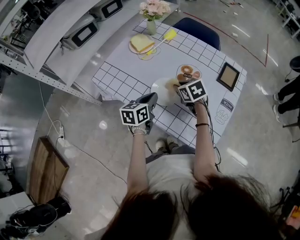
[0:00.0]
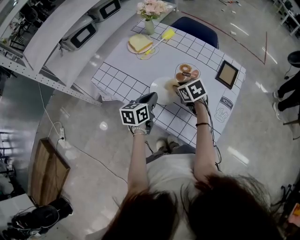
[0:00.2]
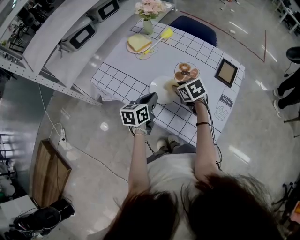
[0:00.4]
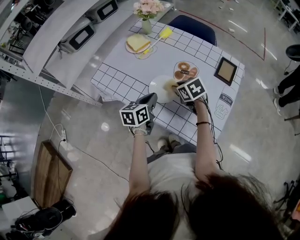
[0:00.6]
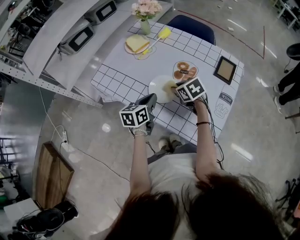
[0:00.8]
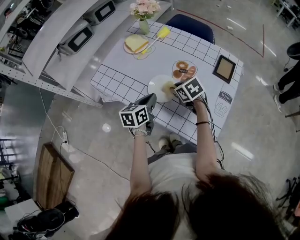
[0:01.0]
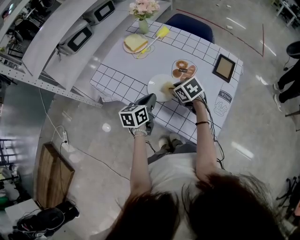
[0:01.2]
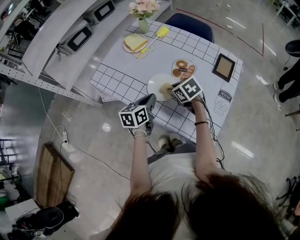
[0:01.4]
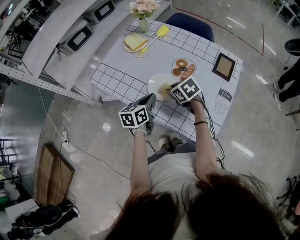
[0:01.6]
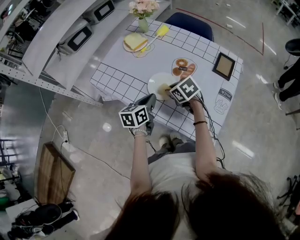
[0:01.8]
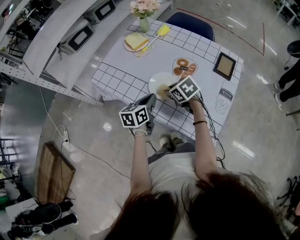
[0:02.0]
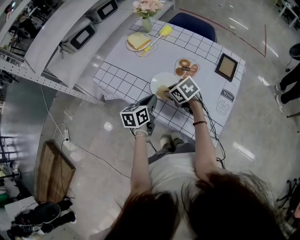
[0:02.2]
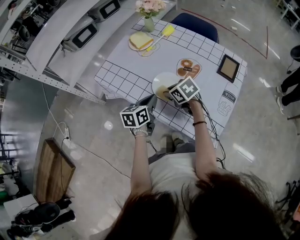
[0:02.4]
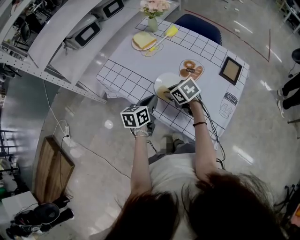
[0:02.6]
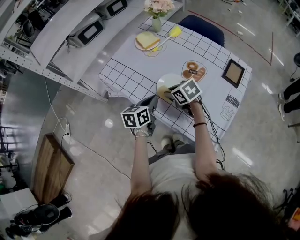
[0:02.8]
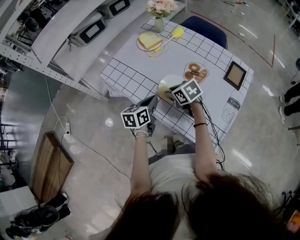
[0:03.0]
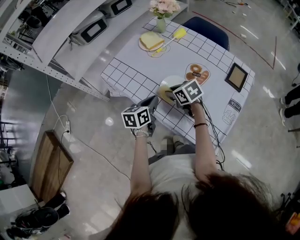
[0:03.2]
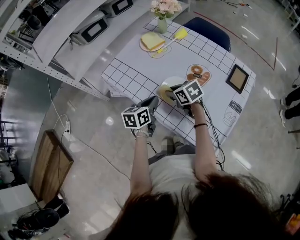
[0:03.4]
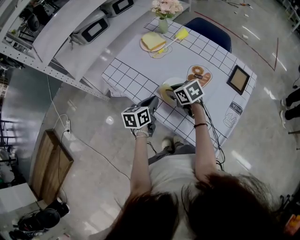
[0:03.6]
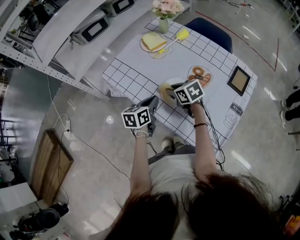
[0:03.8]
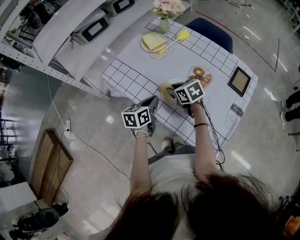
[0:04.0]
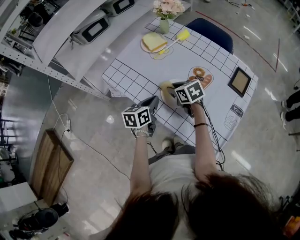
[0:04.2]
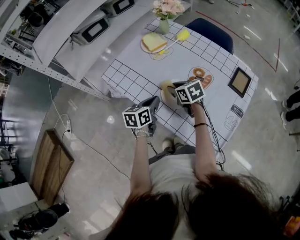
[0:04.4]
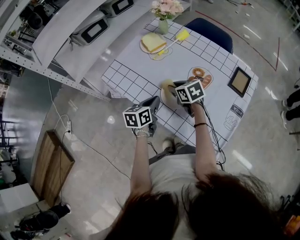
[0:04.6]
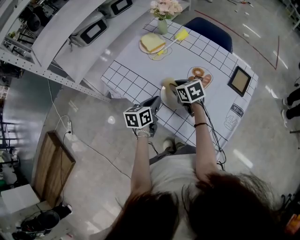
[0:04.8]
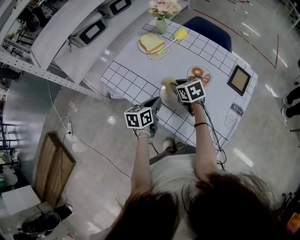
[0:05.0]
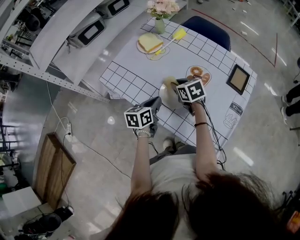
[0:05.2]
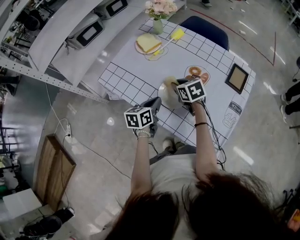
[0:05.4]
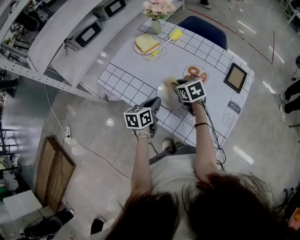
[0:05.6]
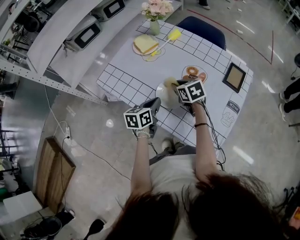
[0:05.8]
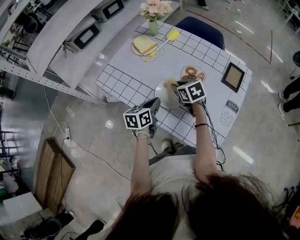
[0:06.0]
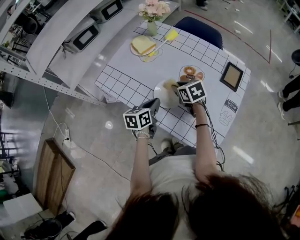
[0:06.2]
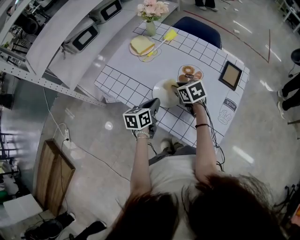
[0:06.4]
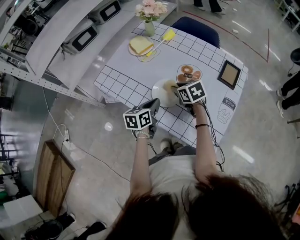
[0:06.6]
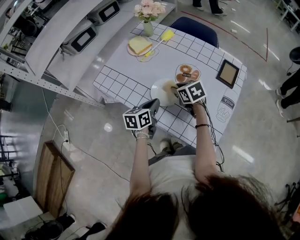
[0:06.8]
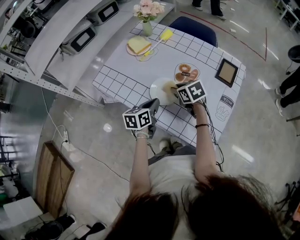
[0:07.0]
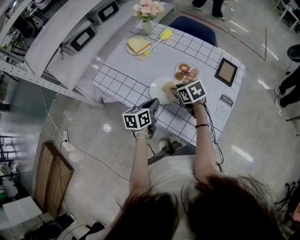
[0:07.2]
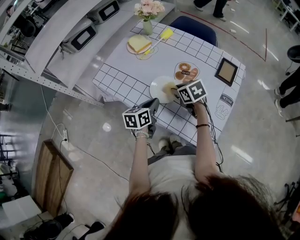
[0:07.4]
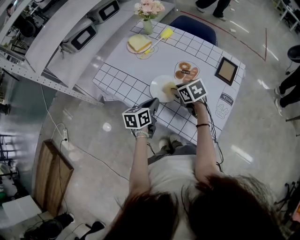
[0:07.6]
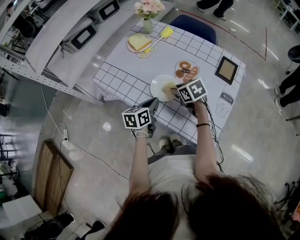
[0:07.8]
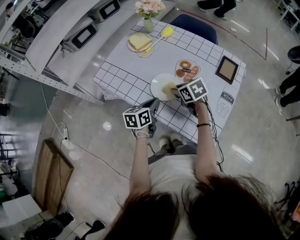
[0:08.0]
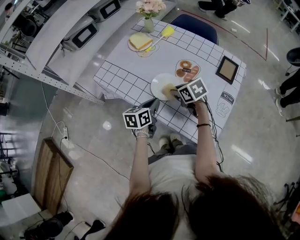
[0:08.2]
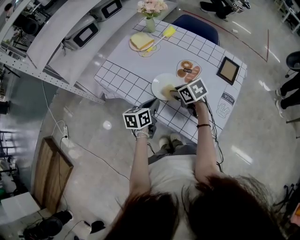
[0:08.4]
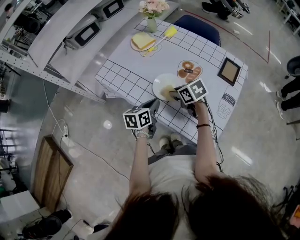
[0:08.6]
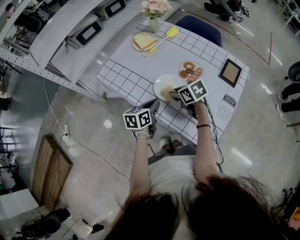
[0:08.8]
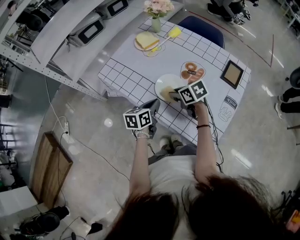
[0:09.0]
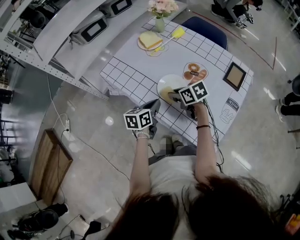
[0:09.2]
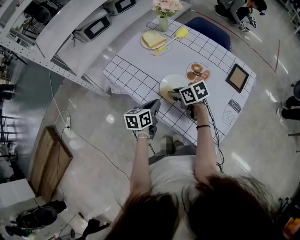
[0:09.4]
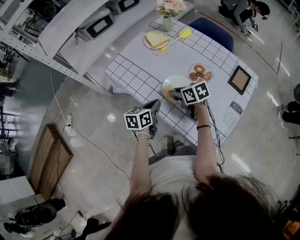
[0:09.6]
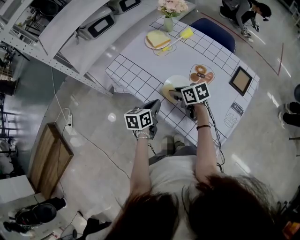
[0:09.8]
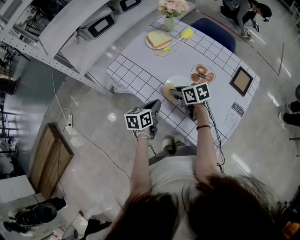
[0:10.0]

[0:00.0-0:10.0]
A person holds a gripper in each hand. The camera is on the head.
0:00.0 to 0:01.4: There are only small adjustments of the grippers.
0:01.4 to 0:02.8: The right gripper moves to the left, roughly 5 cm.
0:02.8 to 0:04.2: The right gripper shifts roughly 5 cm forward.
0:04.2 to 0:05.8: The right gripper heads to the right, covering roughly 5 cm.
0:05.8 to 0:07.2: The right gripper moves some 5 cm.
0:07.2 to 0:08.6: There are only small adjustments of the grippers.
0:08.6 to 0:10.0: The right gripper shifts by about 5 cm.

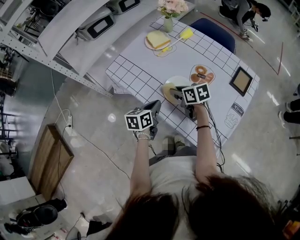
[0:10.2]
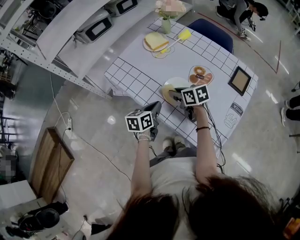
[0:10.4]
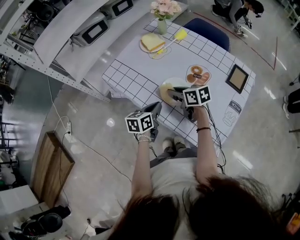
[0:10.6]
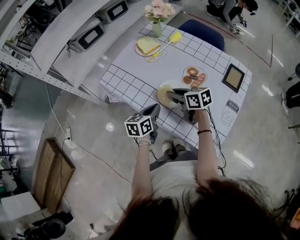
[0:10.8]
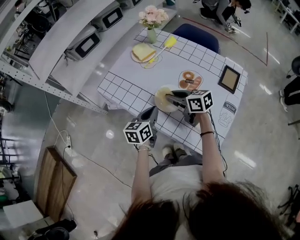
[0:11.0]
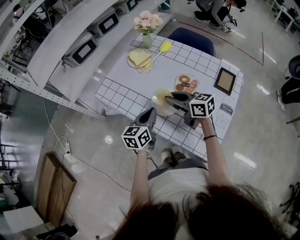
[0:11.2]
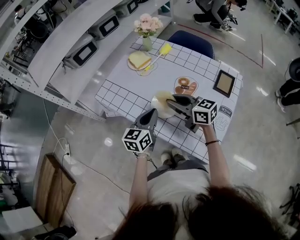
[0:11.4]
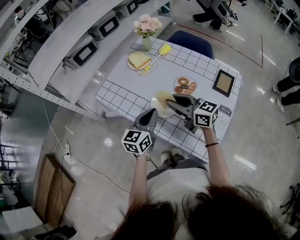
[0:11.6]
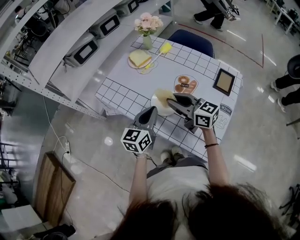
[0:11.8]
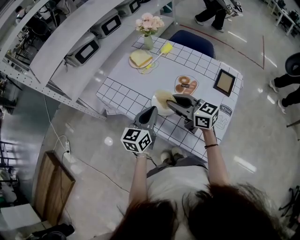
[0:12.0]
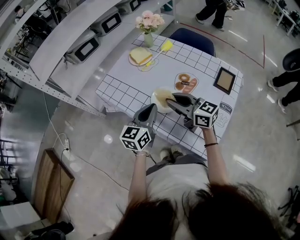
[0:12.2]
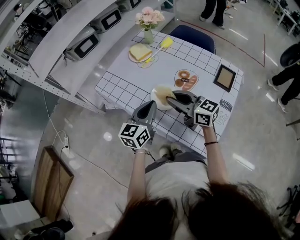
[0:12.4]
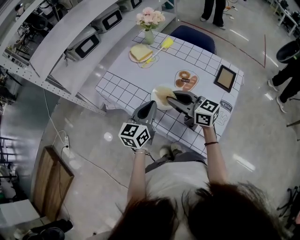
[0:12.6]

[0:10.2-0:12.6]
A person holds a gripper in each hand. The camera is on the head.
0:10.2 to 0:11.4: Both grippers travel together upward, some 10 cm. The right gripper swivels about 30 degrees, while the left gripper rotates roughly 20 degrees.
0:11.4 to 0:12.6: The grippers make only small movements.

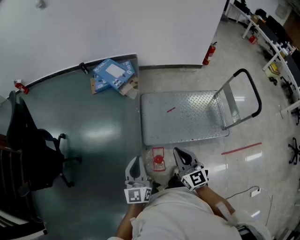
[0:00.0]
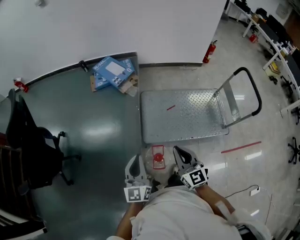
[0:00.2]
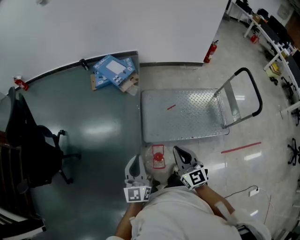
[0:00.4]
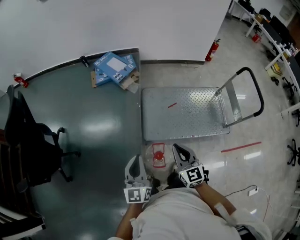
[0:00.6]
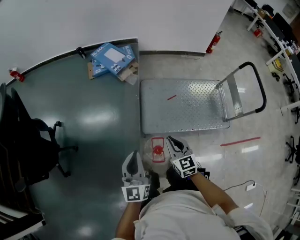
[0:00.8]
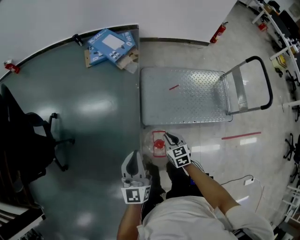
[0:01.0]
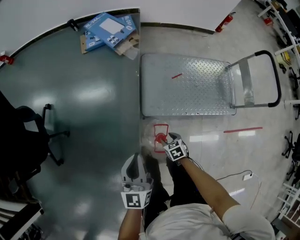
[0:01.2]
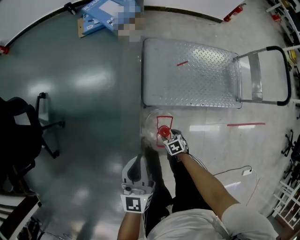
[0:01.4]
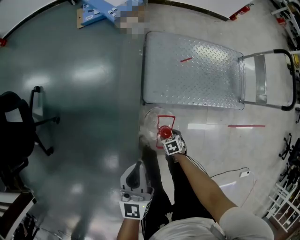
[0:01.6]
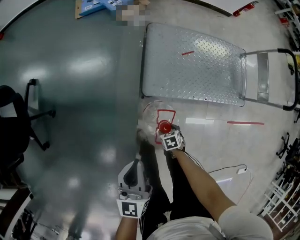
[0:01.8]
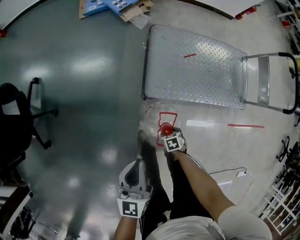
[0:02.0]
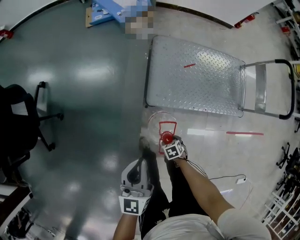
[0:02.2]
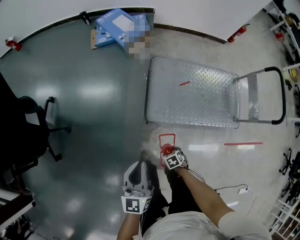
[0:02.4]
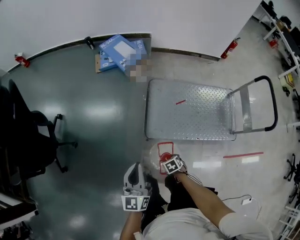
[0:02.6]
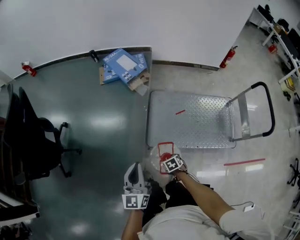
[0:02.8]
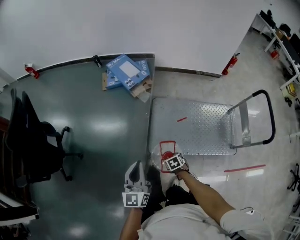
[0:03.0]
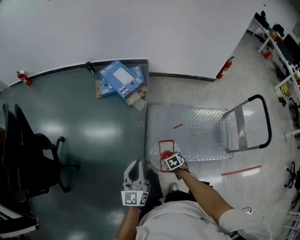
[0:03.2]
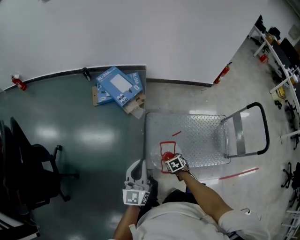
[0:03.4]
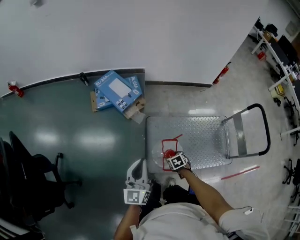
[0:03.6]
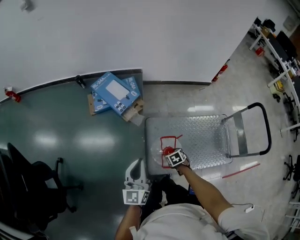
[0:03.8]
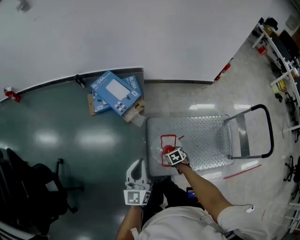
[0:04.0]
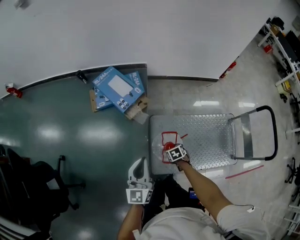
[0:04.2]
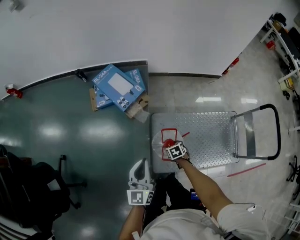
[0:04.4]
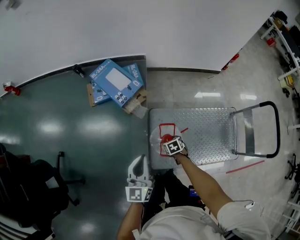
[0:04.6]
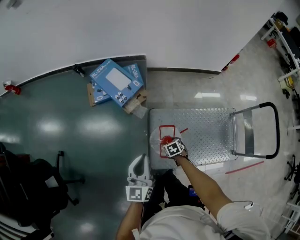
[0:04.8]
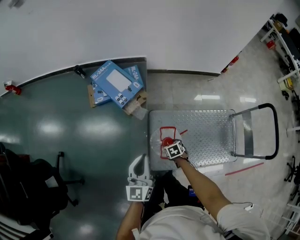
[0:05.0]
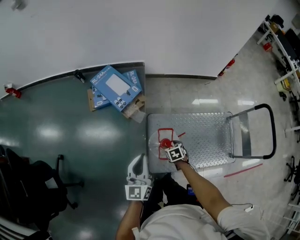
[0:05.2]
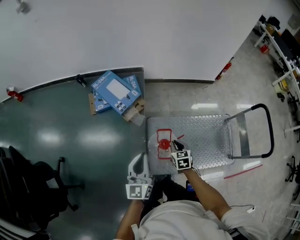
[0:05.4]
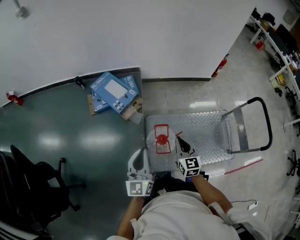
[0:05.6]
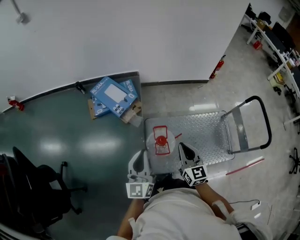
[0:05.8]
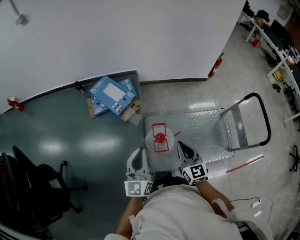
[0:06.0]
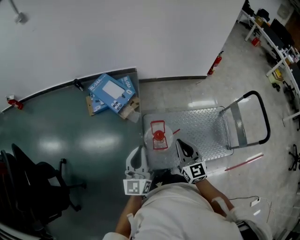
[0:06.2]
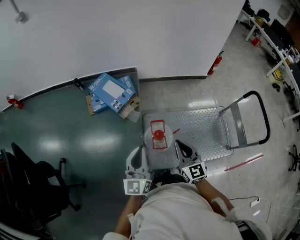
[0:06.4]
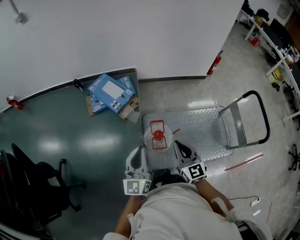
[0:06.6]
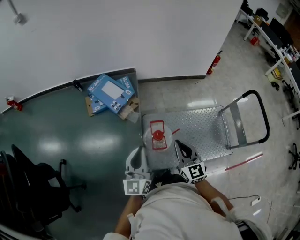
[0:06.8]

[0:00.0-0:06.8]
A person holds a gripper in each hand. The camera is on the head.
0:00.0 to 0:01.4: The right gripper moves downward, some 50 cm, tips its fingers downward by roughly 60 degrees, and opens its fingers. The left gripper goes some 15 cm downward.
0:01.4 to 0:02.8: The left gripper moves upward, some 10 cm. Meanwhile the right gripper goes some 15 cm upward.
0:02.8 to 0:04.0: Both grippers travel together forward, approximately 35 cm.
0:04.0 to 0:05.4: The right gripper moves upward, some 15 cm, swivels roughly 30 degrees, and closes.
0:05.4 to 0:06.8: The right gripper shifts approximately 25 cm upward and backward, and angles its fingers upward, by about 40 degrees, while the left gripper moves backward and upward, roughly 10 cm.

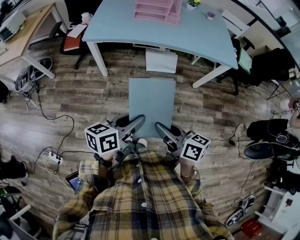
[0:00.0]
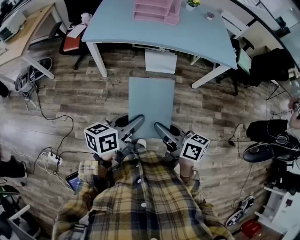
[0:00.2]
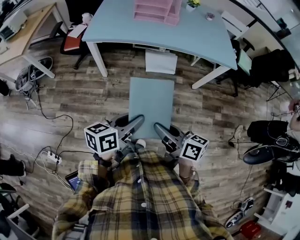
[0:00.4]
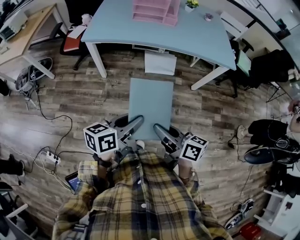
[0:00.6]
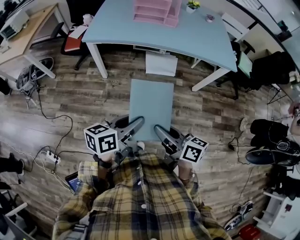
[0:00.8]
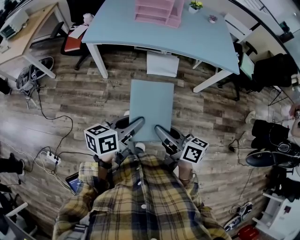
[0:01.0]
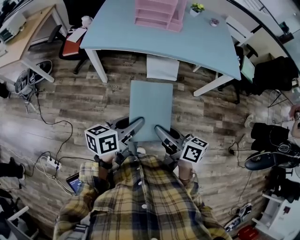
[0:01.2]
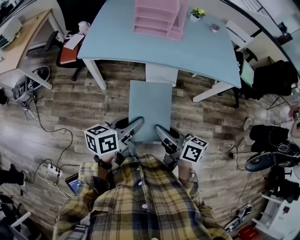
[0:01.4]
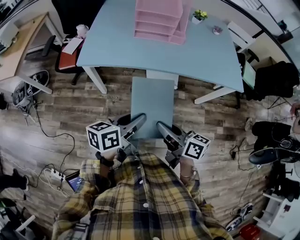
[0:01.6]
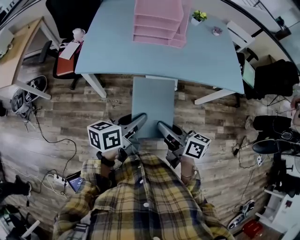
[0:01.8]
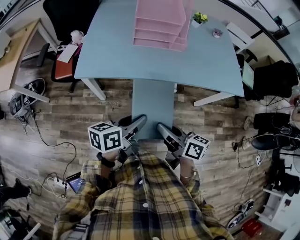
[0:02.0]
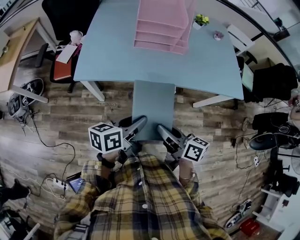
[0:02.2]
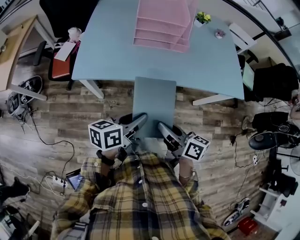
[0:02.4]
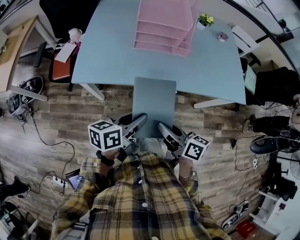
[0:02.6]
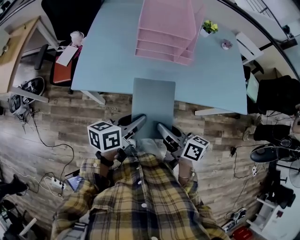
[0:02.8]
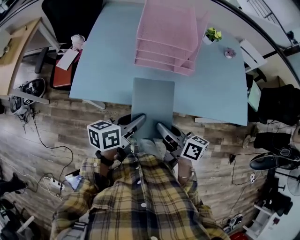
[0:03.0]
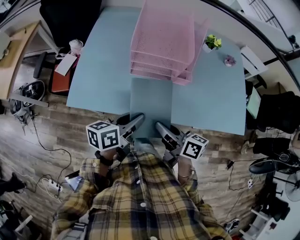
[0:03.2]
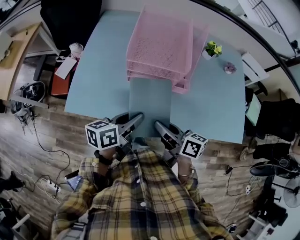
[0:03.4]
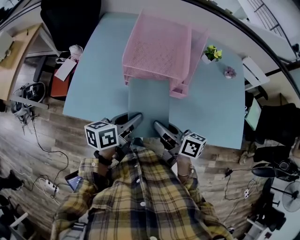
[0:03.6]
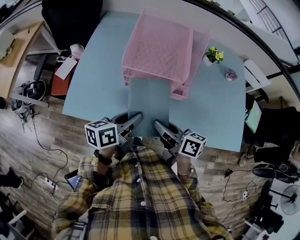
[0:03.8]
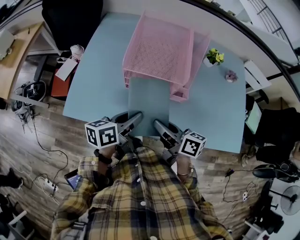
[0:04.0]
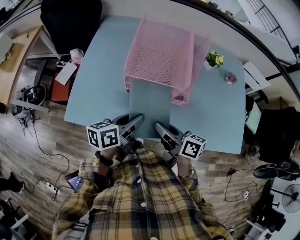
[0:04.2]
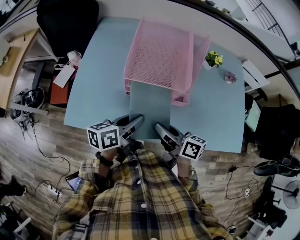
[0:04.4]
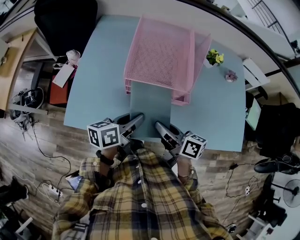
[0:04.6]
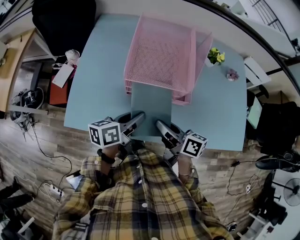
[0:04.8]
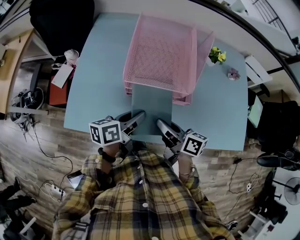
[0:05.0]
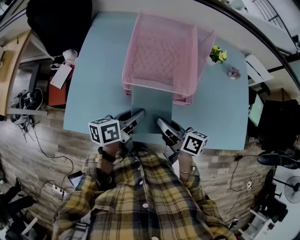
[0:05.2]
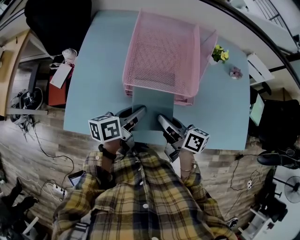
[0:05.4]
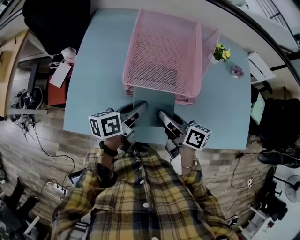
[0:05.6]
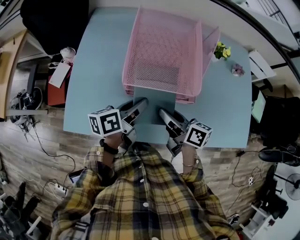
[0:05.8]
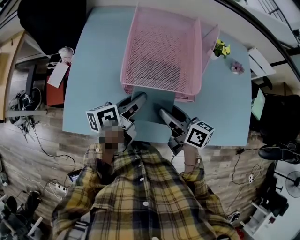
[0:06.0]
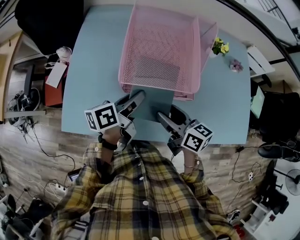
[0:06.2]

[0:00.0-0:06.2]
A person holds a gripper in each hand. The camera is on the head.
0:00.0 to 0:01.6: The two grippers go approximately 20 cm forward.
0:01.6 to 0:03.2: Both grippers move forward, about 30 cm.
0:03.2 to 0:04.6: Both grippers move forward, some 10 cm.
0:04.6 to 0:06.2: The left gripper is displaced forward by roughly 10 cm. Meanwhile the right gripper heads forward, covering approximately 5 cm, and opens.
